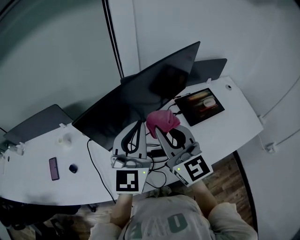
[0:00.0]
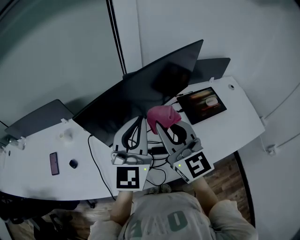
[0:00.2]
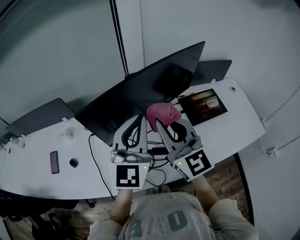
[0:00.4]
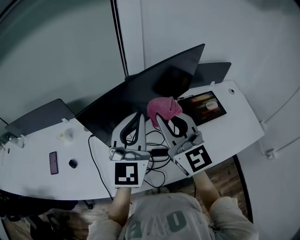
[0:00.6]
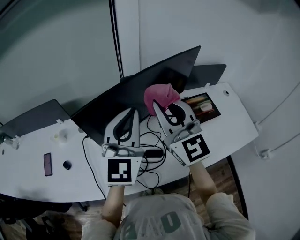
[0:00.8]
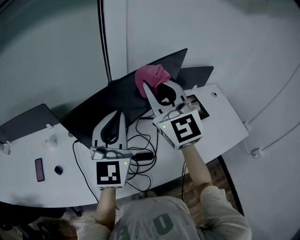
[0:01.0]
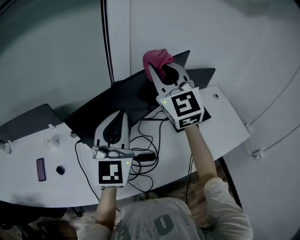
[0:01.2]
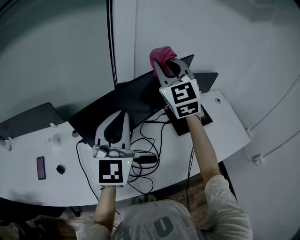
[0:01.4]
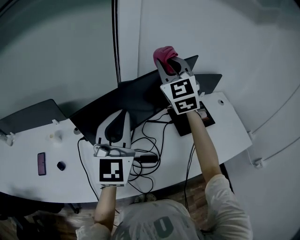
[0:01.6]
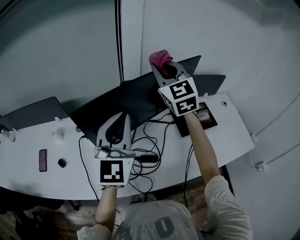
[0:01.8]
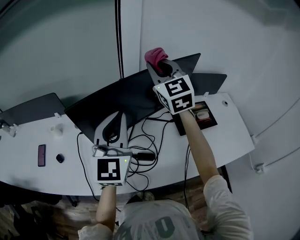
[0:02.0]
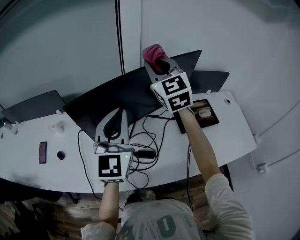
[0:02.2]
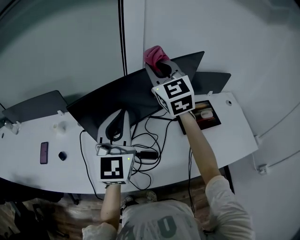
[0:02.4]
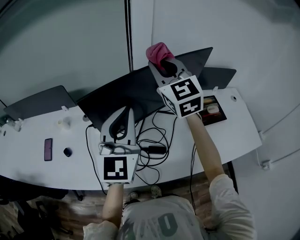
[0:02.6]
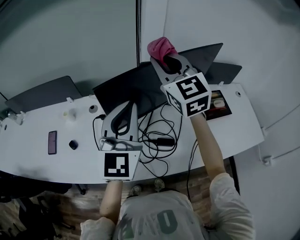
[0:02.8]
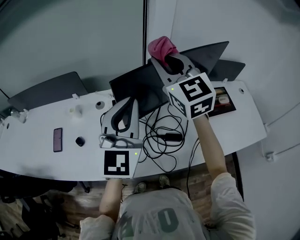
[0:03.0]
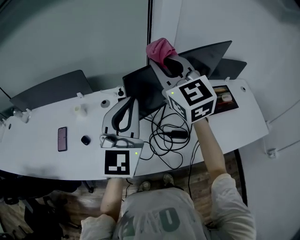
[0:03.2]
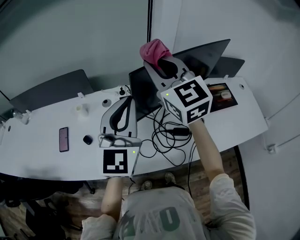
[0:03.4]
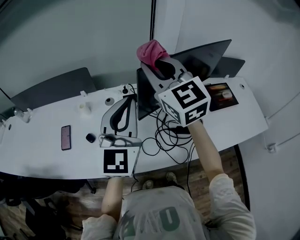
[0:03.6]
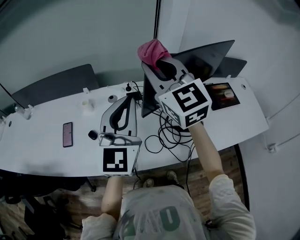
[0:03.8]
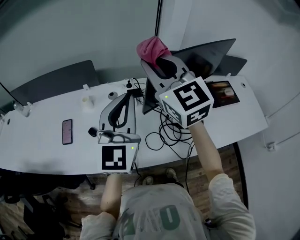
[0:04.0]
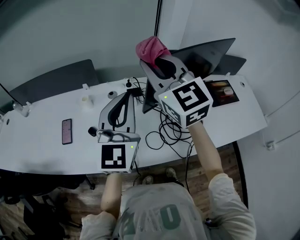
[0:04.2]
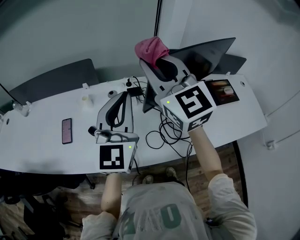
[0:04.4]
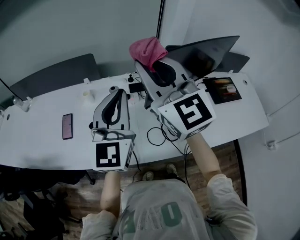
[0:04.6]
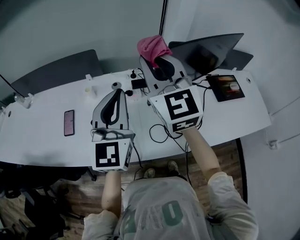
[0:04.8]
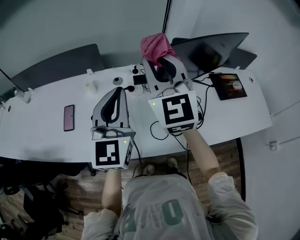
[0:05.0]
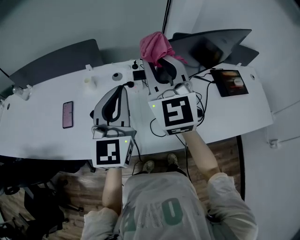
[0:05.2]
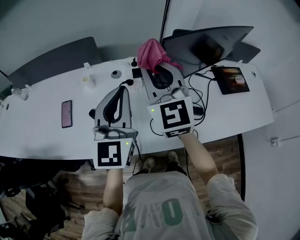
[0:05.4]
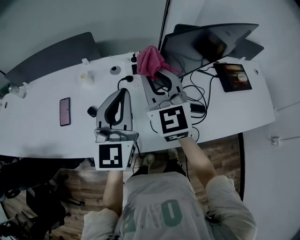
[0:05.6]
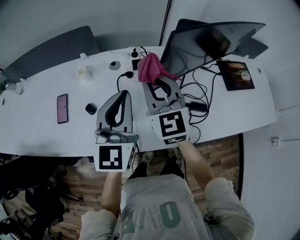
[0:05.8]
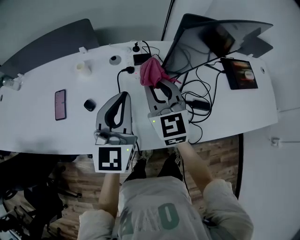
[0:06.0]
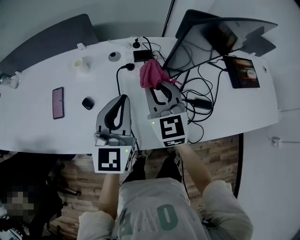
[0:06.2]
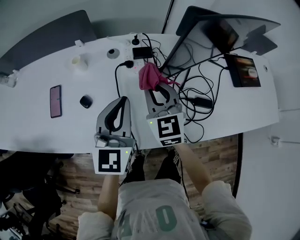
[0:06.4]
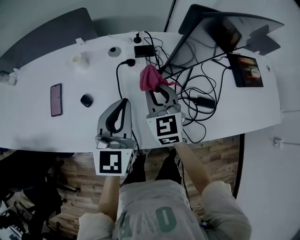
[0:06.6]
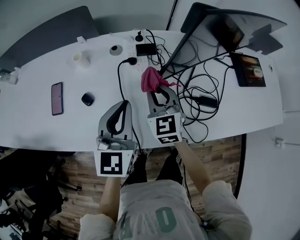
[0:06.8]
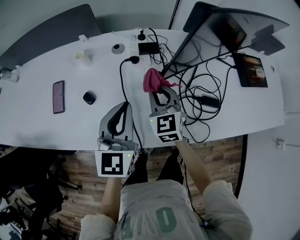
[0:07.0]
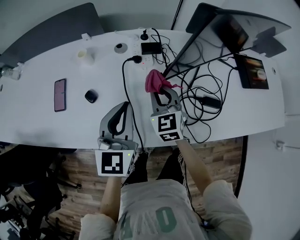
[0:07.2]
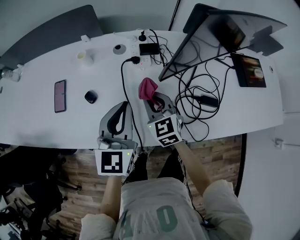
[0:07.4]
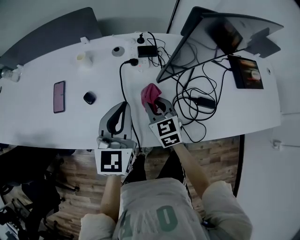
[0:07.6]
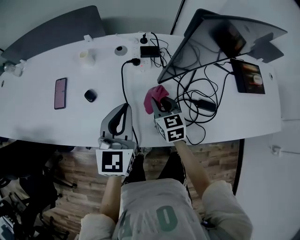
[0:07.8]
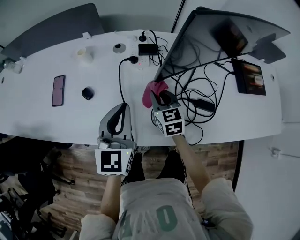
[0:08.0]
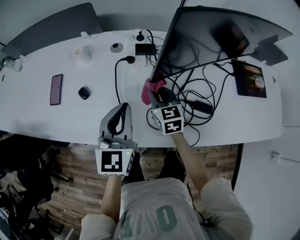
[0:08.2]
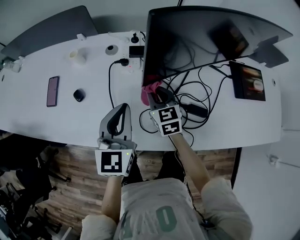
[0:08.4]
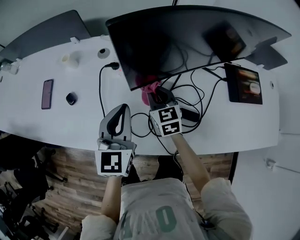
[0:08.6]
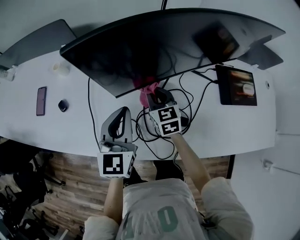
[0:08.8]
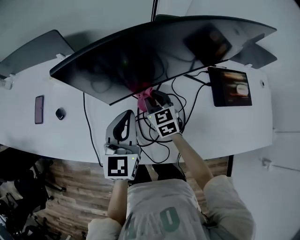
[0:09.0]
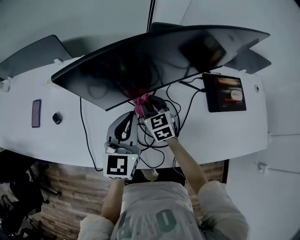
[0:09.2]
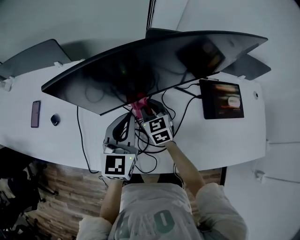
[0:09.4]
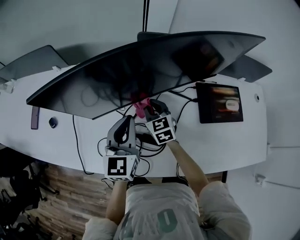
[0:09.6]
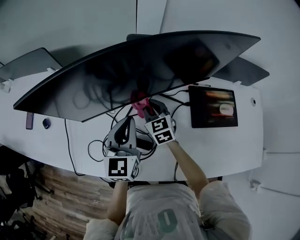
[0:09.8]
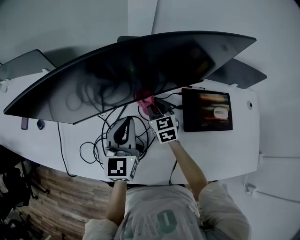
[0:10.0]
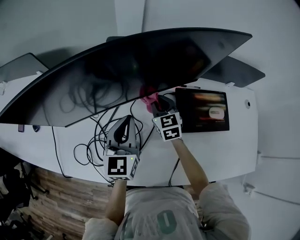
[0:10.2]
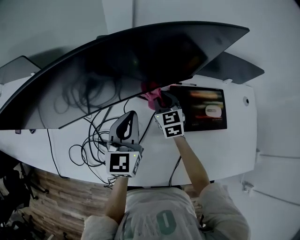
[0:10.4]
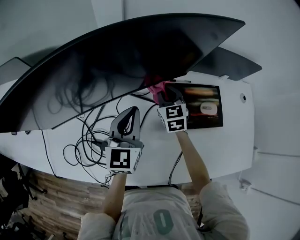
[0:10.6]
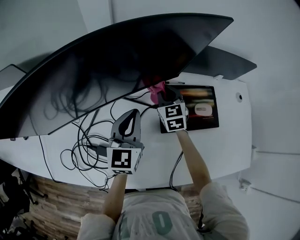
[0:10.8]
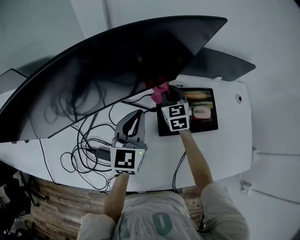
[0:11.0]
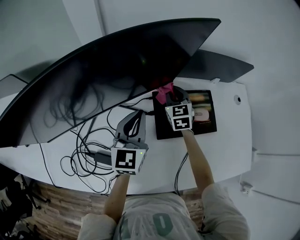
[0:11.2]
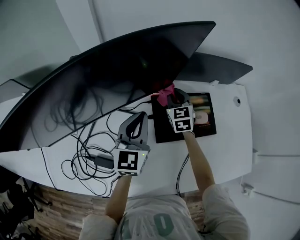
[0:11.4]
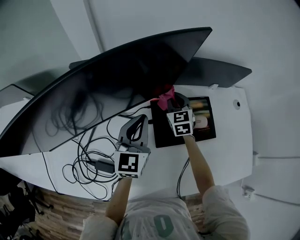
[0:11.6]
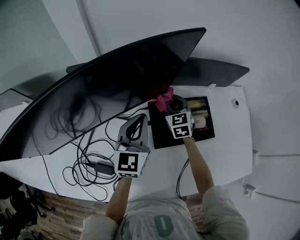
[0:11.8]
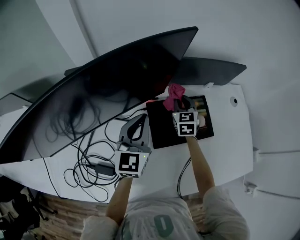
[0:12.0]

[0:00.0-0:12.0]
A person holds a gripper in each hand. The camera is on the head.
0.0 to 1.6 s: The left gripper moves roughly 5 cm. Meanwhile the right gripper shifts roughly 20 cm forward and upward, and changes its angle by some 30 degrees.
1.6 to 3.0 s: The left gripper goes roughly 10 cm to the left. Meanwhile the right gripper shifts roughly 20 cm to the left and backward, and changes its angle by some 20 degrees.
3.0 to 4.4 s: The left gripper moves to the left, about 15 cm; the right gripper shifts some 15 cm to the left and backward.
4.4 to 6.0 s: The left gripper heads downward, covering roughly 15 cm. The right gripper travels downward by roughly 25 cm.
6.0 to 7.6 s: The right gripper goes some 20 cm downward, and changes its angle by approximately 20 degrees, while the left gripper is displaced downward by some 5 cm.
7.6 to 9.0 s: The left gripper goes roughly 20 cm to the right. Meanwhile the right gripper travels to the right and forward by about 20 cm.
9.0 to 10.4 s: Both grippers travel together to the right, some 25 cm.
10.4 to 12.0 s: The right gripper shifts approximately 20 cm to the right, and changes its angle by approximately 20 degrees; the left gripper heads to the right and forward, covering approximately 15 cm.

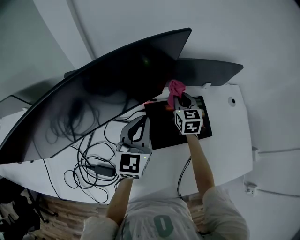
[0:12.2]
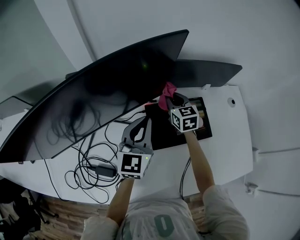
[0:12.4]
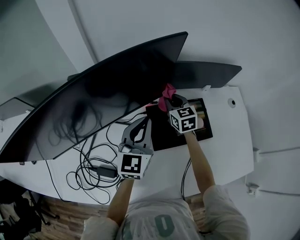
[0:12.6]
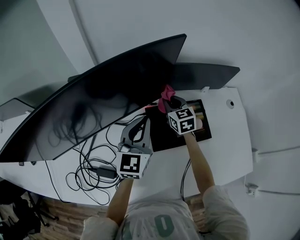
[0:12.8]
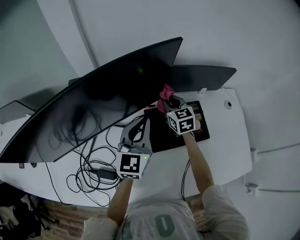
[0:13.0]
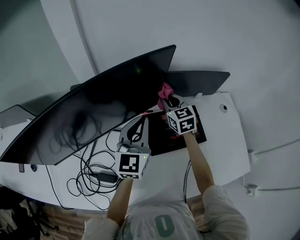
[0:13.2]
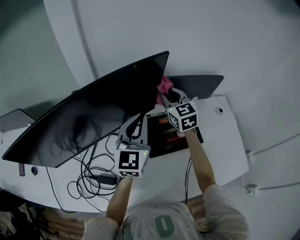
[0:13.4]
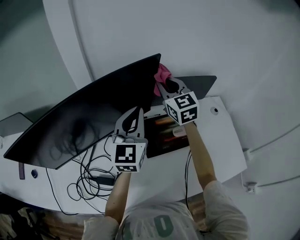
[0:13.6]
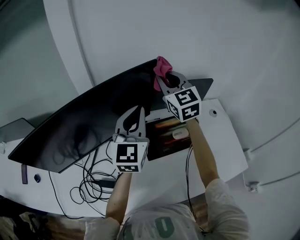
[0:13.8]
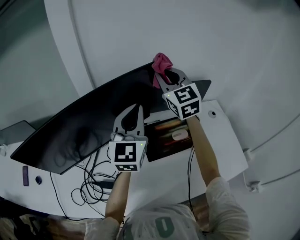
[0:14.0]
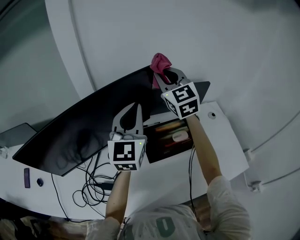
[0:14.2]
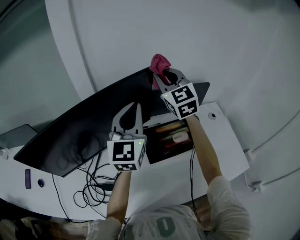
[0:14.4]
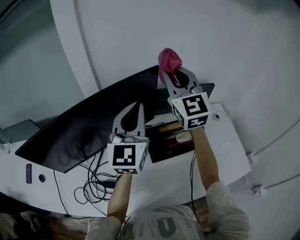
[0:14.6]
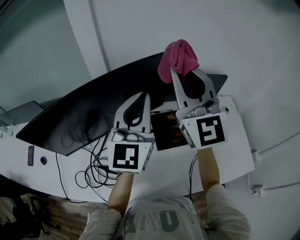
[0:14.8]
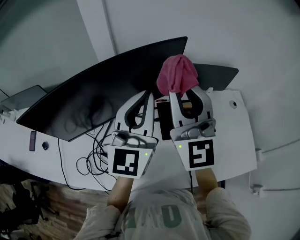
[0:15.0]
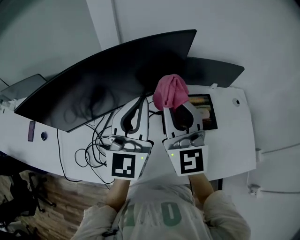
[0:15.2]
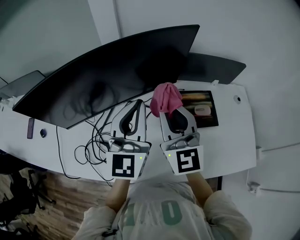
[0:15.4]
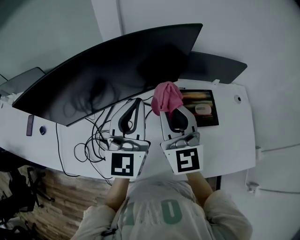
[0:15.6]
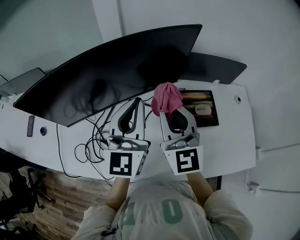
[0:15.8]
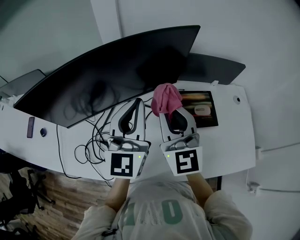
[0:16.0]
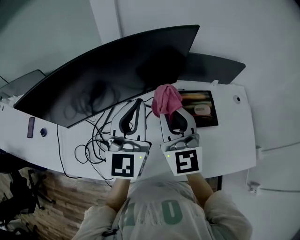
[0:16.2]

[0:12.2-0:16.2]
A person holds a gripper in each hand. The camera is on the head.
12.2 to 13.6 s: The right gripper goes about 25 cm upward, and swivels approximately 20 degrees. Meanwhile the left gripper moves upward, some 15 cm.
13.6 to 14.8 s: The left gripper goes about 10 cm upward and backward; the right gripper is displaced upward and backward by some 25 cm, and changes its angle by some 30 degrees.
14.8 to 16.2 s: The right gripper goes approximately 20 cm downward and to the left, and turns by approximately 20 degrees. The left gripper is displaced downward, to the left and backward by some 10 cm.

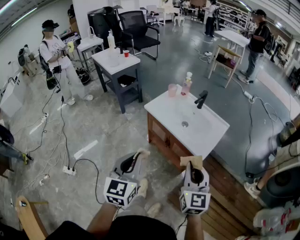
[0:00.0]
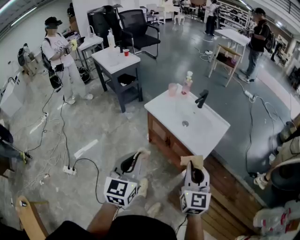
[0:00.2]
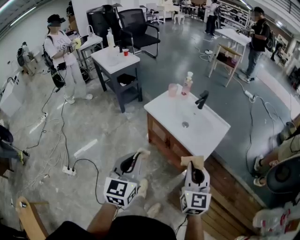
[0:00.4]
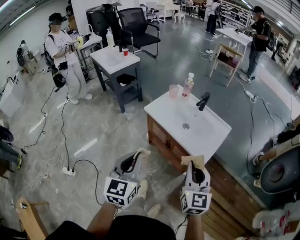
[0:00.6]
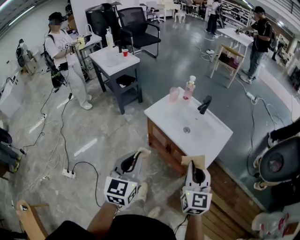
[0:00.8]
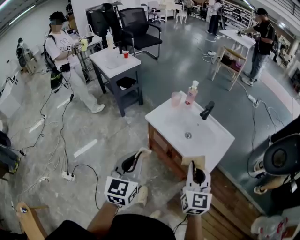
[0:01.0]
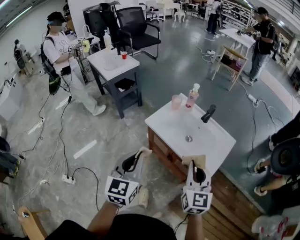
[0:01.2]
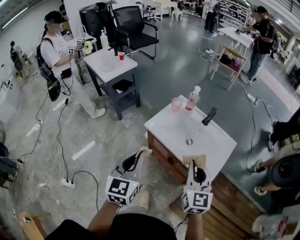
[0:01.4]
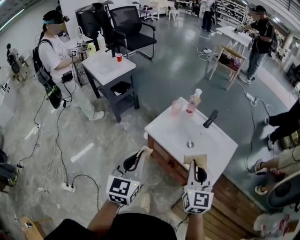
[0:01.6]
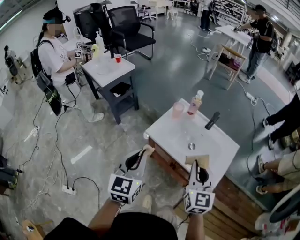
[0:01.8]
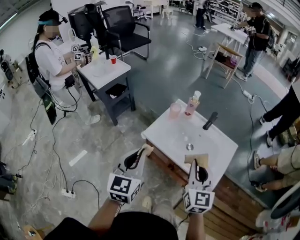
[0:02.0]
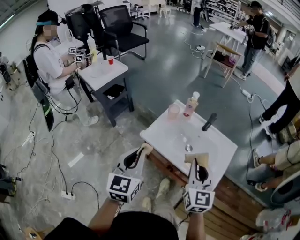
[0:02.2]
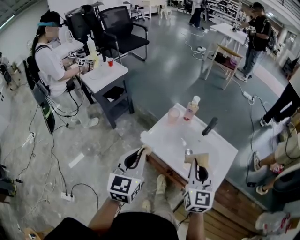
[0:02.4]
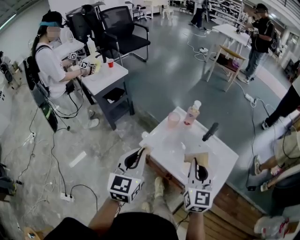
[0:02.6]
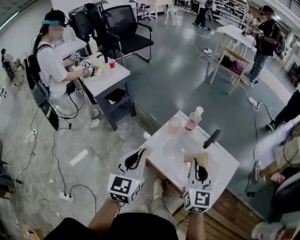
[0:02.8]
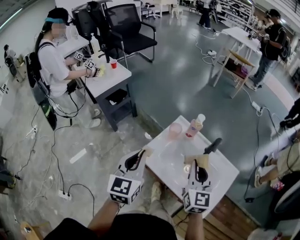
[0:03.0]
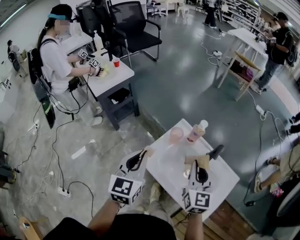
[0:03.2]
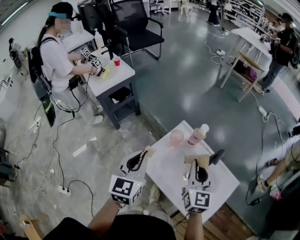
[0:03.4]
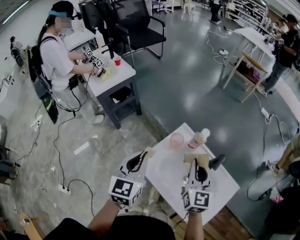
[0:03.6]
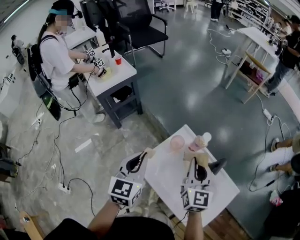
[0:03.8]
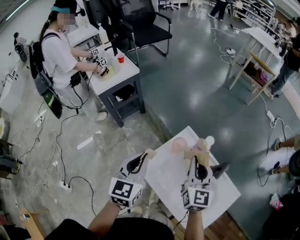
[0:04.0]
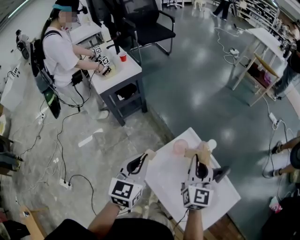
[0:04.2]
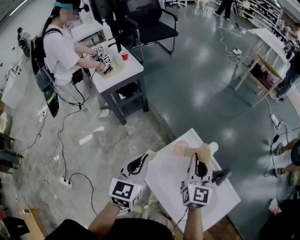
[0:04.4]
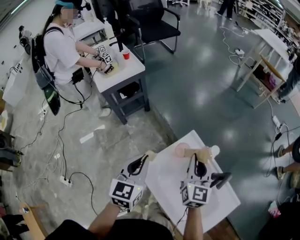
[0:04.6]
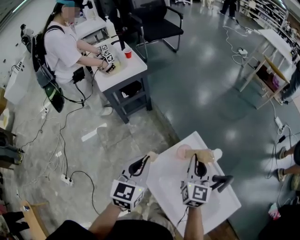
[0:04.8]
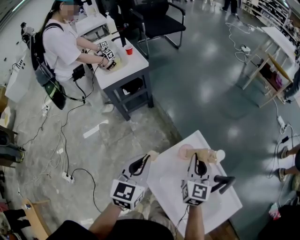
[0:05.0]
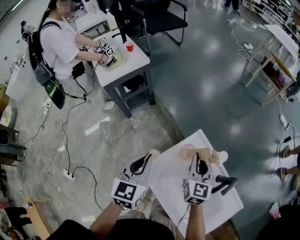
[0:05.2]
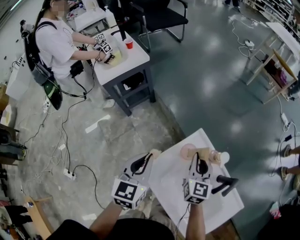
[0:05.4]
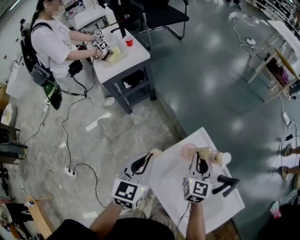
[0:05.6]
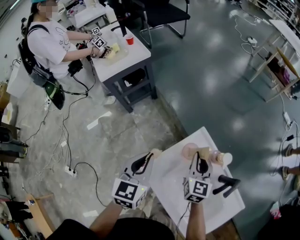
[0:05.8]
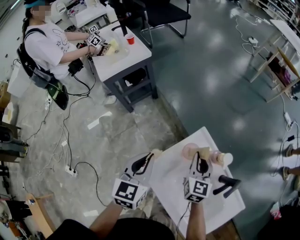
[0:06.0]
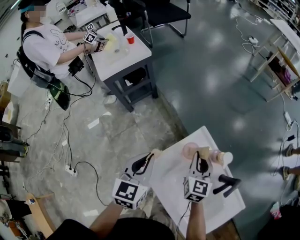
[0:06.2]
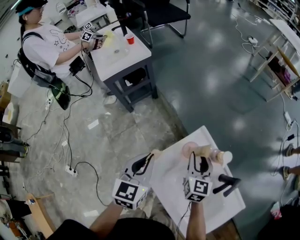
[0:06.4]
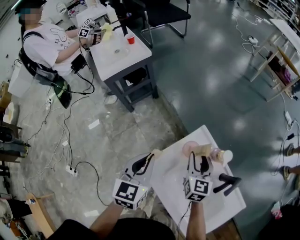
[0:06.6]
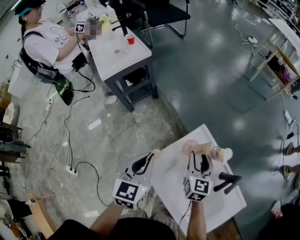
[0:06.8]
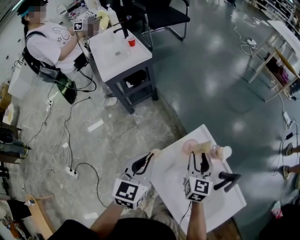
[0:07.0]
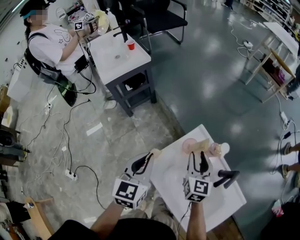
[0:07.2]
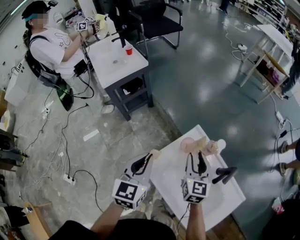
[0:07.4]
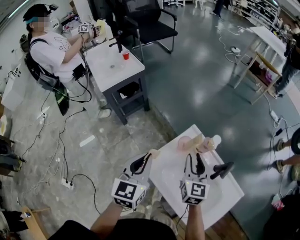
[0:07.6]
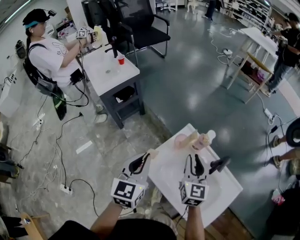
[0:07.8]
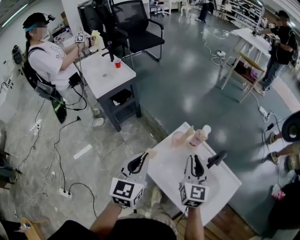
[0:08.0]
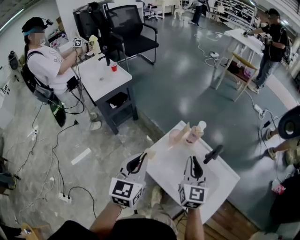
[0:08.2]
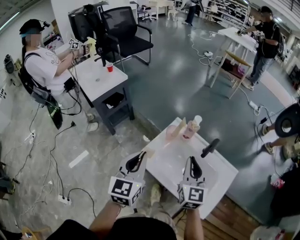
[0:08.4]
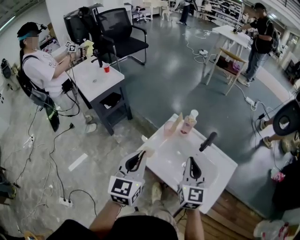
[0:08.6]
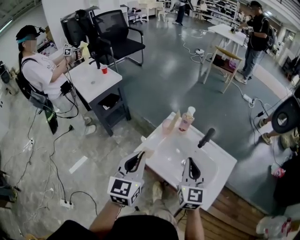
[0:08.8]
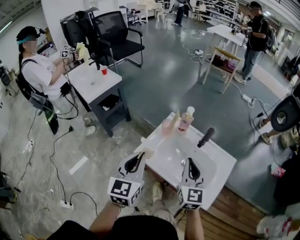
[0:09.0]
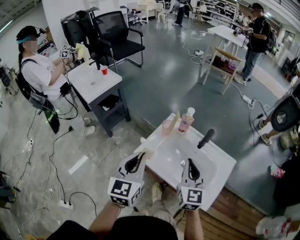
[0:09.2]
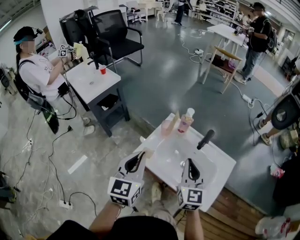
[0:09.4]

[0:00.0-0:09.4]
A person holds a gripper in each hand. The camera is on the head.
0.0 to 1.6 s: The grippers both shift forward by about 25 cm.
1.6 to 3.2 s: The grippers both shift forward by roughly 25 cm.
3.2 to 4.8 s: Both grippers move forward and downward, some 15 cm.
4.8 to 6.2 s: The left gripper shifts by roughly 5 cm. The right gripper is displaced downward by approximately 10 cm.
6.2 to 7.8 s: The two grippers go about 15 cm upward and backward.
7.8 to 9.4 s: The left gripper travels backward by approximately 10 cm. The right gripper heads backward and upward, covering roughly 15 cm, and closes.
